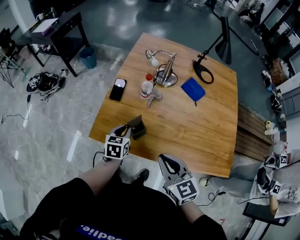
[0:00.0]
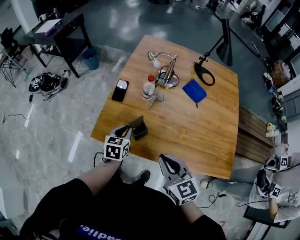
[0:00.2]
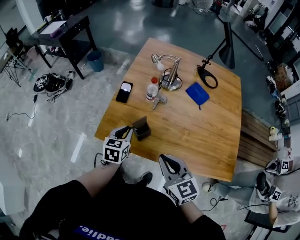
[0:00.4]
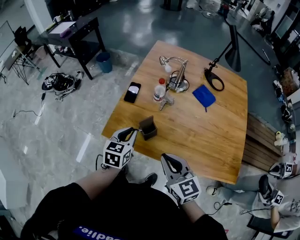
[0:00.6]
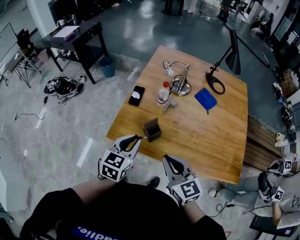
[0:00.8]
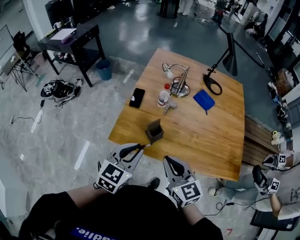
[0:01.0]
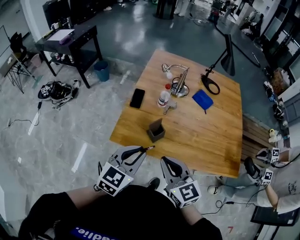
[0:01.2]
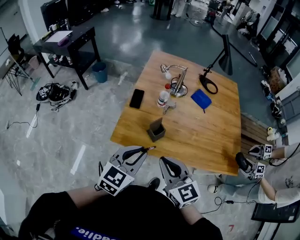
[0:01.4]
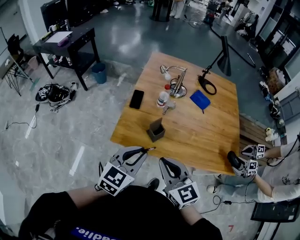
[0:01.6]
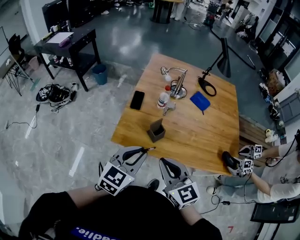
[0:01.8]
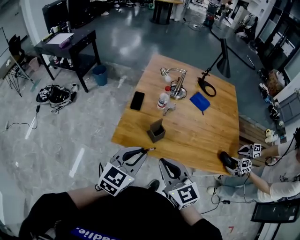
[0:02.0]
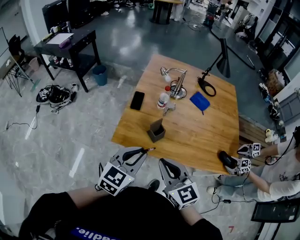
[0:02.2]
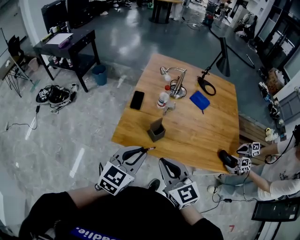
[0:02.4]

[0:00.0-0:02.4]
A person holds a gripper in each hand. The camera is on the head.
0:00.0 to 0:01.2: The left gripper is displaced upward and backward by some 25 cm, and rotates roughly 30 degrees. The right gripper shifts some 10 cm to the left and upward.
0:01.2 to 0:02.4: The grippers make only small movements.

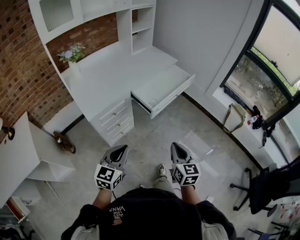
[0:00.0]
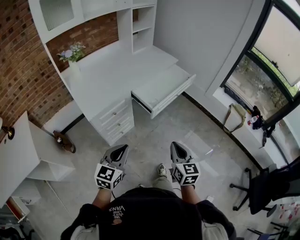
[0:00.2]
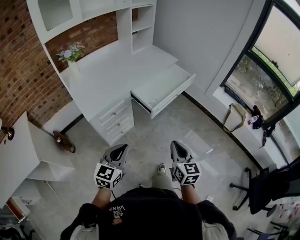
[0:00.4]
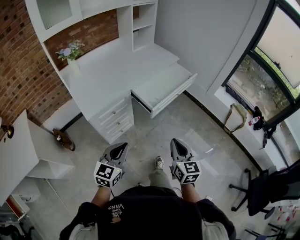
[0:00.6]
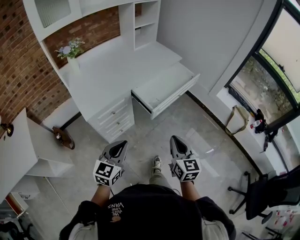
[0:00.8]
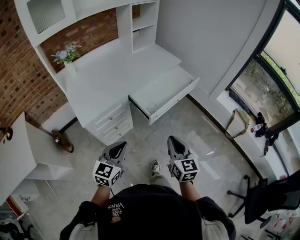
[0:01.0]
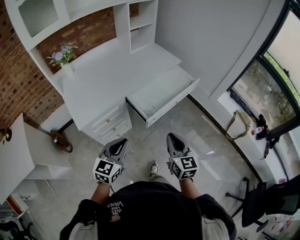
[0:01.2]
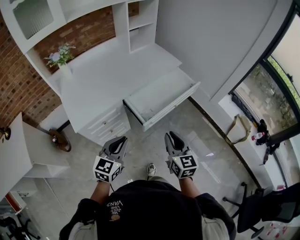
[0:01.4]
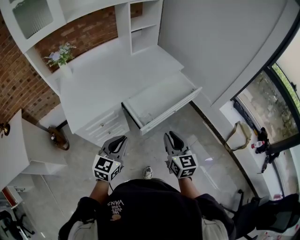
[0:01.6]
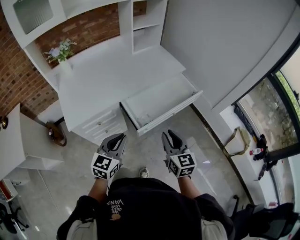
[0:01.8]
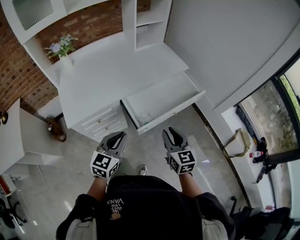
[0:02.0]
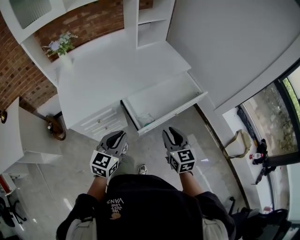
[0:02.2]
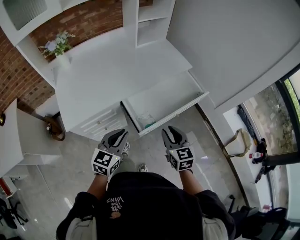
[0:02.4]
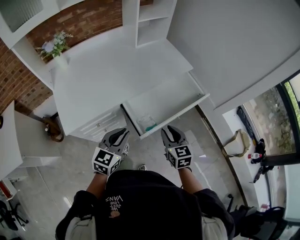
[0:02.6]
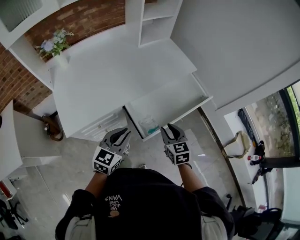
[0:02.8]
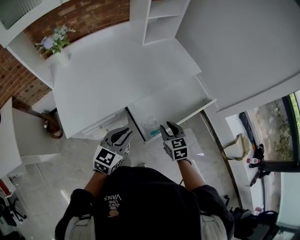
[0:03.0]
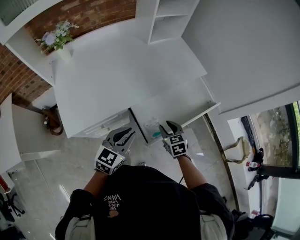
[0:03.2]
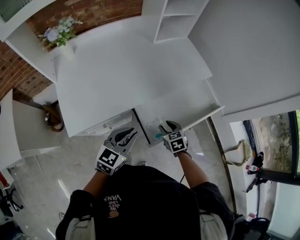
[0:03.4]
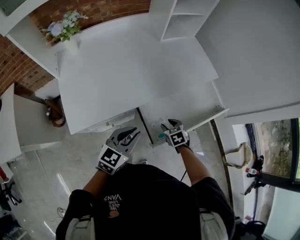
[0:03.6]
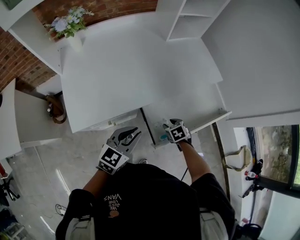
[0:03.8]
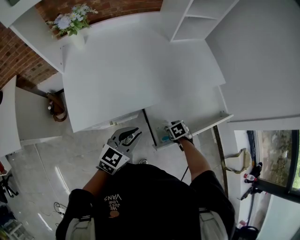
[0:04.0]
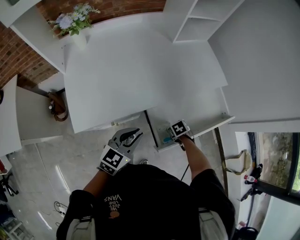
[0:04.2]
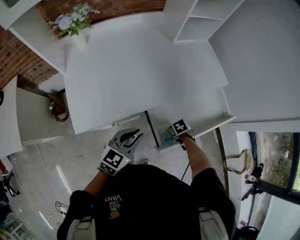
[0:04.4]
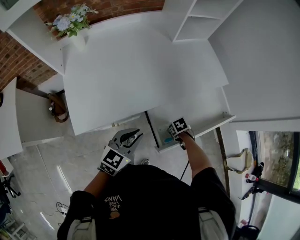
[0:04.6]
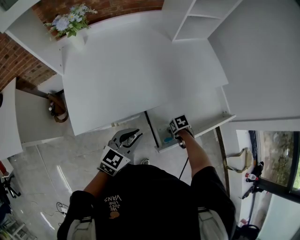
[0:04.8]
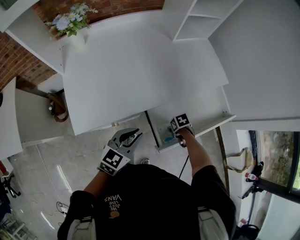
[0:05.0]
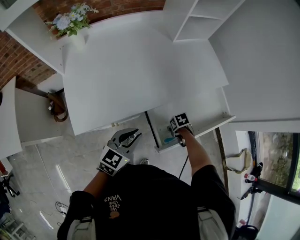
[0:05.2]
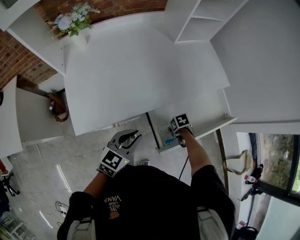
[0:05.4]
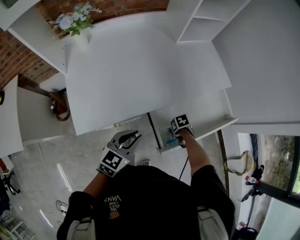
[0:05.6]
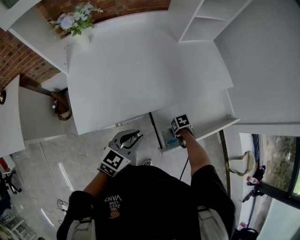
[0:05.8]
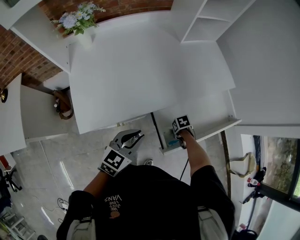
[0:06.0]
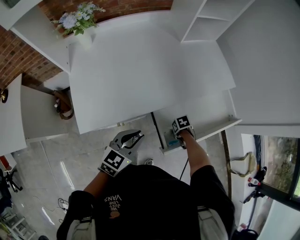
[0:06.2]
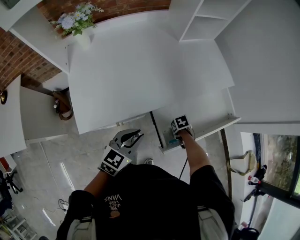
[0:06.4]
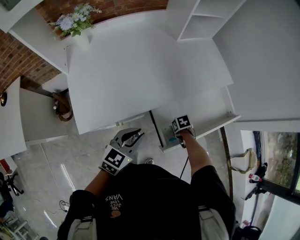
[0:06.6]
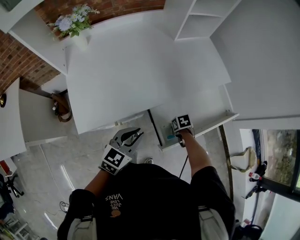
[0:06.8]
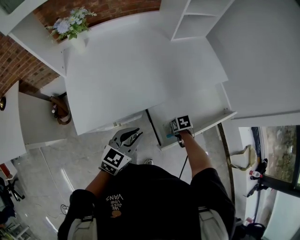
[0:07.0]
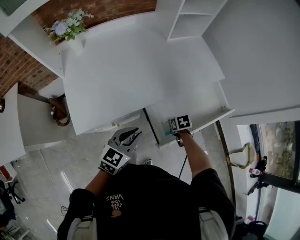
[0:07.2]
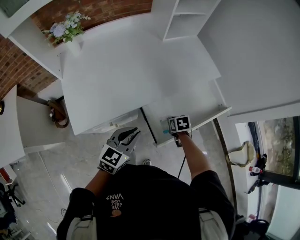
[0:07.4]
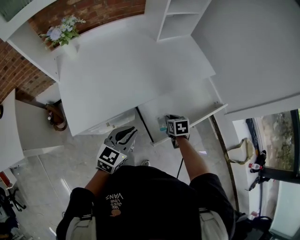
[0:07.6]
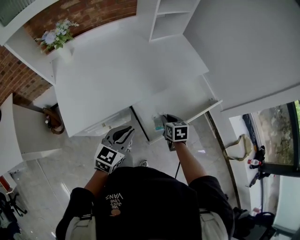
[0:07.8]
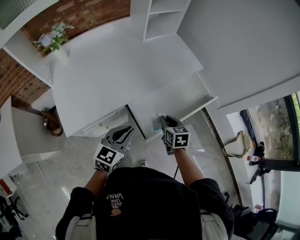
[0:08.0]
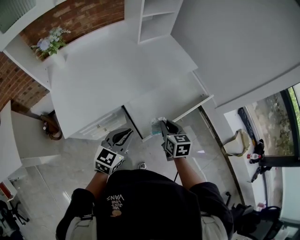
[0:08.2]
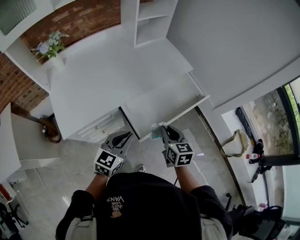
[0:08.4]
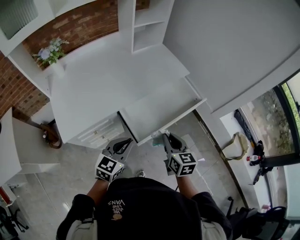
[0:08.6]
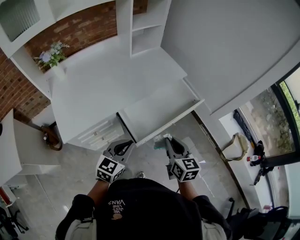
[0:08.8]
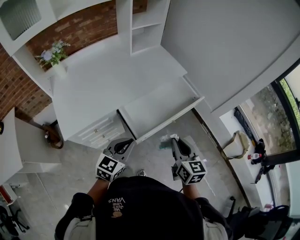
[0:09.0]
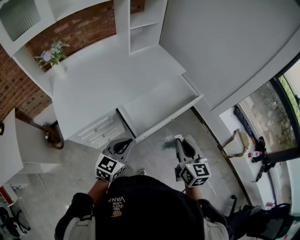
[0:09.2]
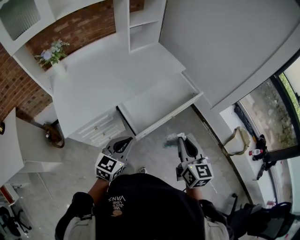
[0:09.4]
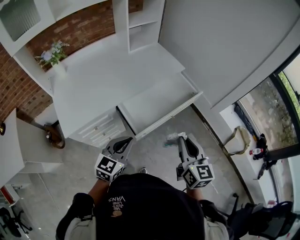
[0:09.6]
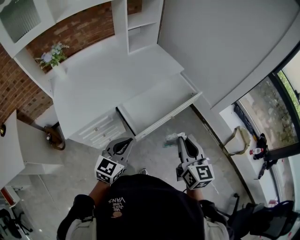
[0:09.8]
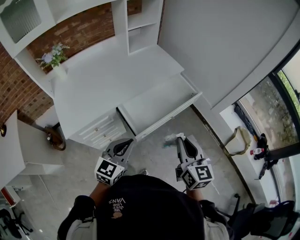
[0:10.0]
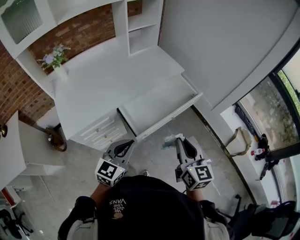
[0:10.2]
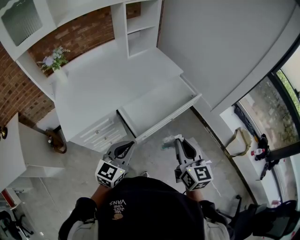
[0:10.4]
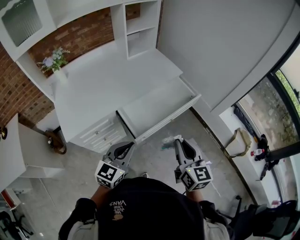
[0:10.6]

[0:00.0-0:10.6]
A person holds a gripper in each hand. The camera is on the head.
0:00.0 to 0:01.6: The grippers both shift forward by some 25 cm.
0:01.6 to 0:03.0: The right gripper goes about 25 cm forward and downward, and rotates some 30 degrees; the left gripper travels forward by approximately 15 cm.
0:03.0 to 0:04.6: The right gripper shifts some 20 cm downward, and tips its fingers downward by approximately 40 degrees; the left gripper shifts by roughly 10 cm.
0:04.6 to 0:06.0: There are only small adjustments of the grippers.
0:06.0 to 0:07.6: The right gripper goes about 15 cm upward, rotates roughly 40 degrees, and closes up. Meanwhile the left gripper changes place by roughly 5 cm.
0:07.6 to 0:09.0: The right gripper heads upward, backward and to the right, covering approximately 35 cm, and tilts its fingers approximately 40 degrees upward. Meanwhile the left gripper shifts about 15 cm to the right and backward.
0:09.0 to 0:10.6: The right gripper is displaced upward by approximately 5 cm. Meanwhile the left gripper shifts by about 5 cm.

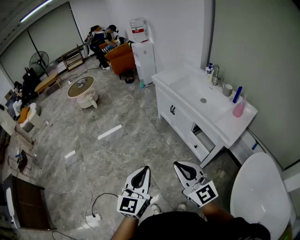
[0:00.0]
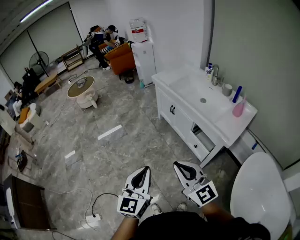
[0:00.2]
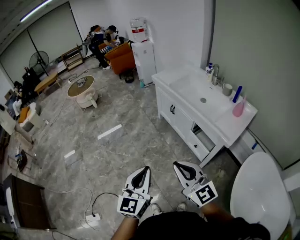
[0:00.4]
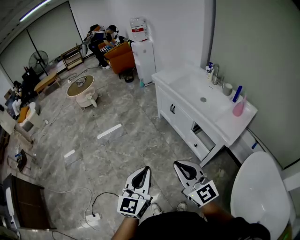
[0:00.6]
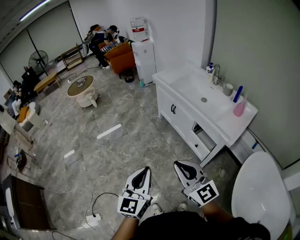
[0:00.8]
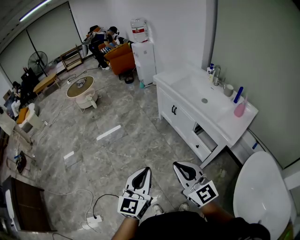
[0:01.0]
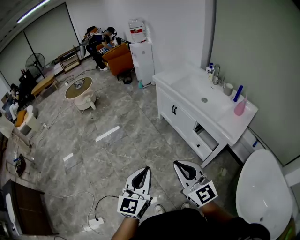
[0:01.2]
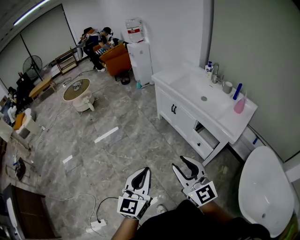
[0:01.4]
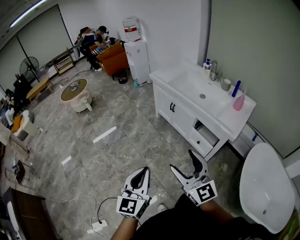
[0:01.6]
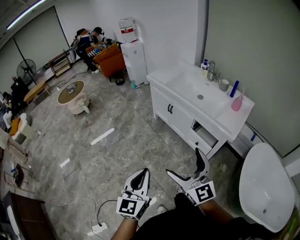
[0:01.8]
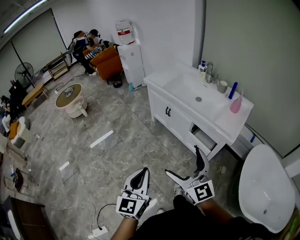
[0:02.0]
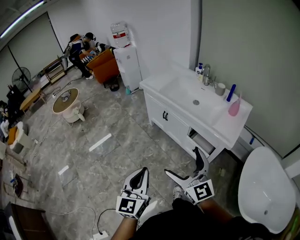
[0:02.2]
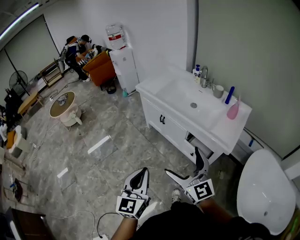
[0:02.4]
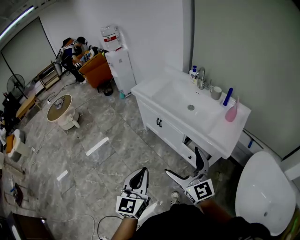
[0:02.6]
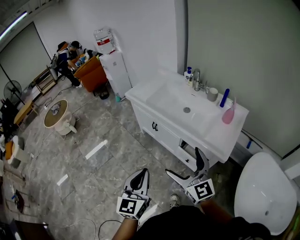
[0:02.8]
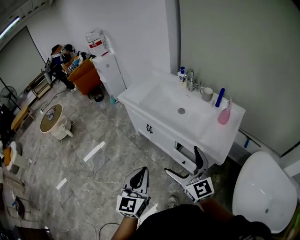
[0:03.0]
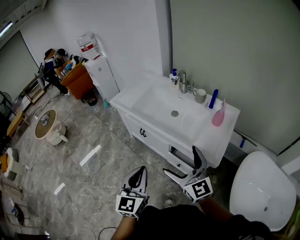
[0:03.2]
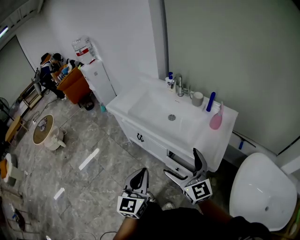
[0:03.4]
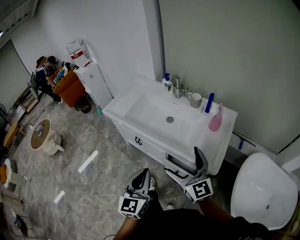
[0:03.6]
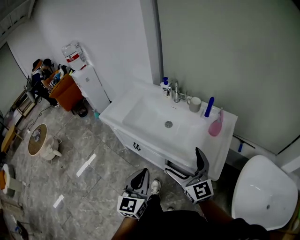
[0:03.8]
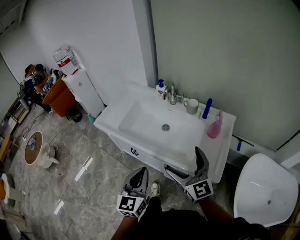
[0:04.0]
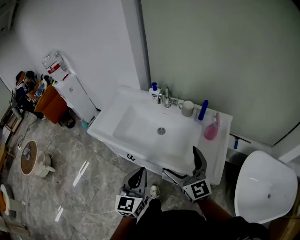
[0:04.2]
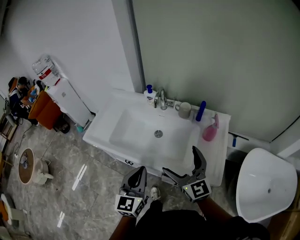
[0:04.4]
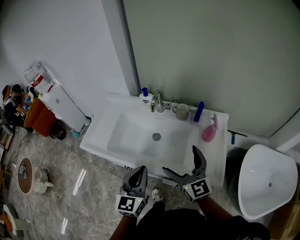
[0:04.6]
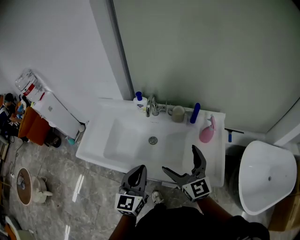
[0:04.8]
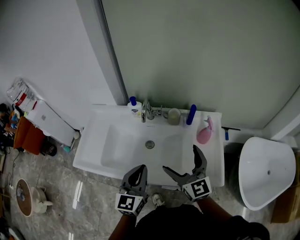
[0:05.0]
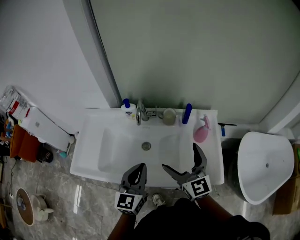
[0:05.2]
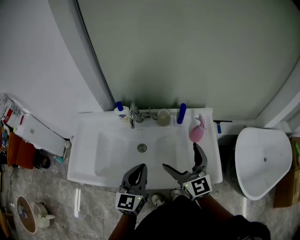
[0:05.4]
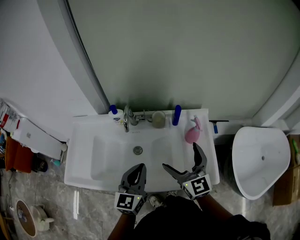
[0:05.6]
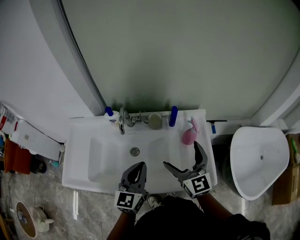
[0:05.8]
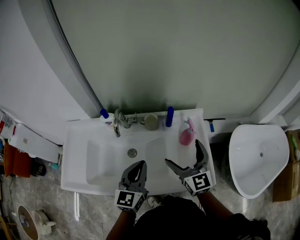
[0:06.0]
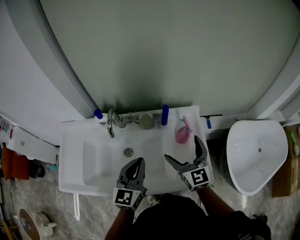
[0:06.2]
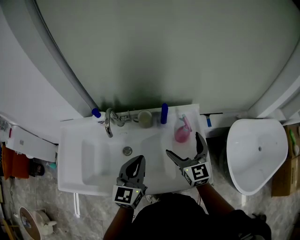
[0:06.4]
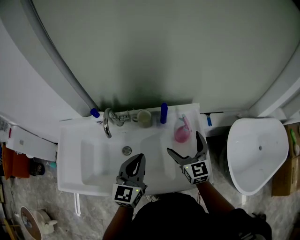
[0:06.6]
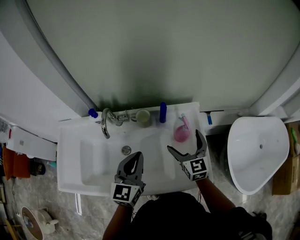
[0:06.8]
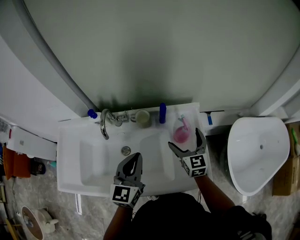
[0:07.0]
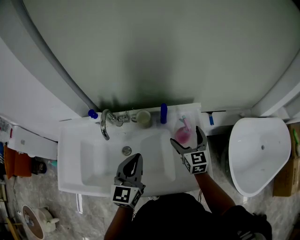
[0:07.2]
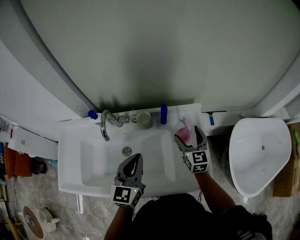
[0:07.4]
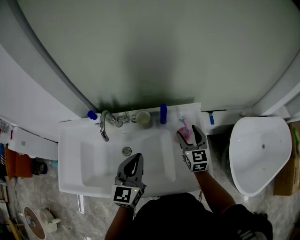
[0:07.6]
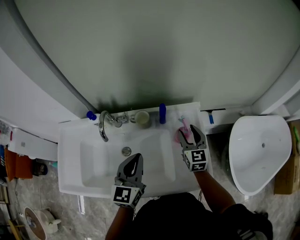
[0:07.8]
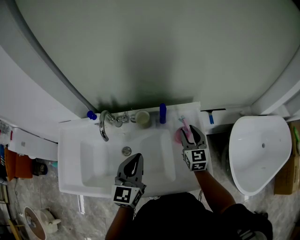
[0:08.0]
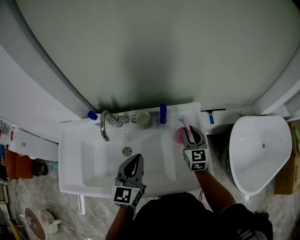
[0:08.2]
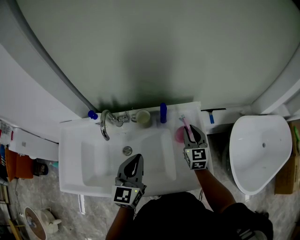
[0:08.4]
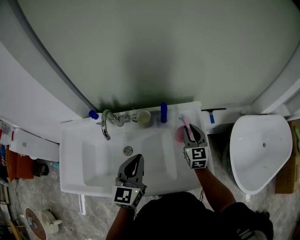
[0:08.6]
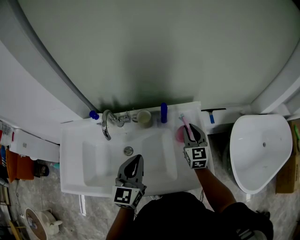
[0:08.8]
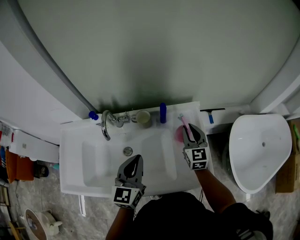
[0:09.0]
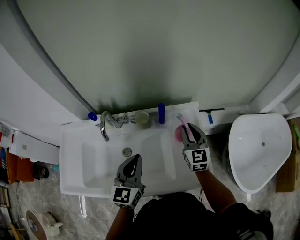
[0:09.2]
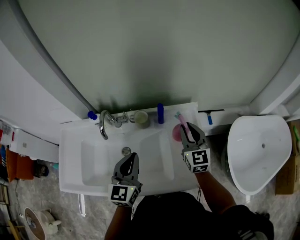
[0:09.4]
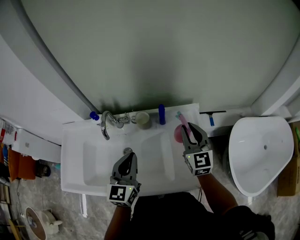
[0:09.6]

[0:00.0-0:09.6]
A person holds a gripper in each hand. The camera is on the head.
0:00.0 to 0:01.6: The left gripper moves to the left, approximately 5 cm, while the right gripper changes place by roughly 5 cm, and opens up.
0:01.6 to 0:03.2: The two grippers go some 35 cm forward and to the right. The right gripper opens.
0:03.2 to 0:04.8: The right gripper changes place by about 30 cm, and changes its angle by approximately 30 degrees, while the left gripper changes place by approximately 35 cm, and rotates about 30 degrees.
0:04.8 to 0:06.4: The right gripper travels to the right and forward by roughly 20 cm, and changes its angle by approximately 30 degrees. Meanwhile the left gripper travels forward and to the right by some 20 cm.
0:06.4 to 0:08.0: The right gripper is displaced forward, downward and to the right by approximately 10 cm, and closes its fingers.
0:08.0 to 0:09.6: The right gripper is displaced upward by approximately 10 cm.

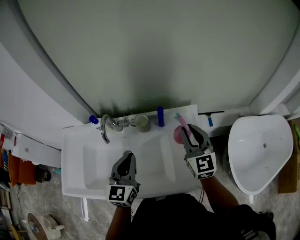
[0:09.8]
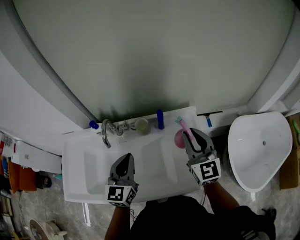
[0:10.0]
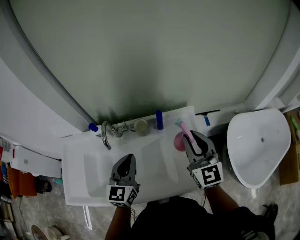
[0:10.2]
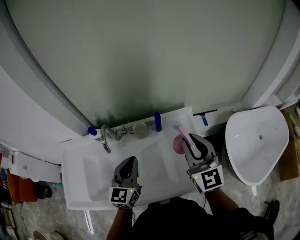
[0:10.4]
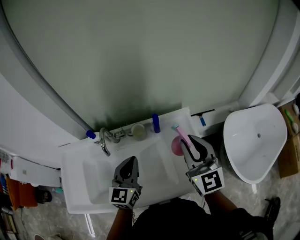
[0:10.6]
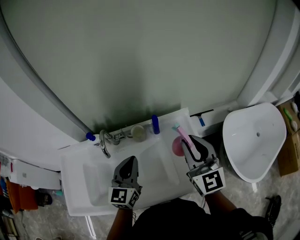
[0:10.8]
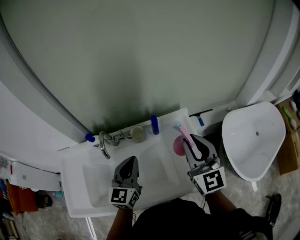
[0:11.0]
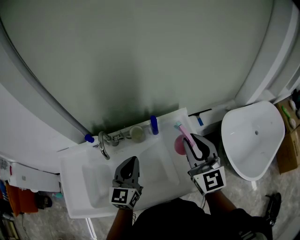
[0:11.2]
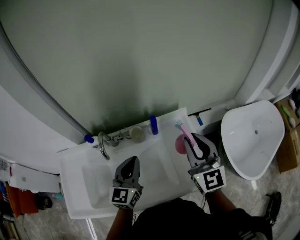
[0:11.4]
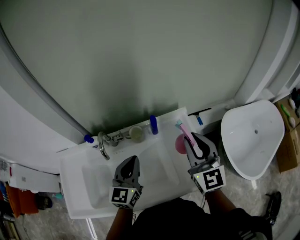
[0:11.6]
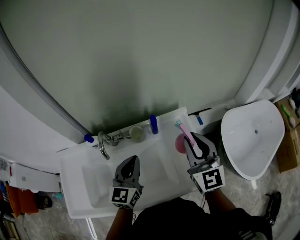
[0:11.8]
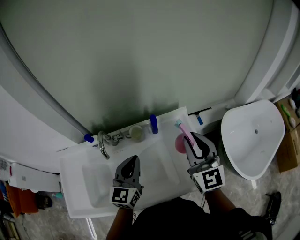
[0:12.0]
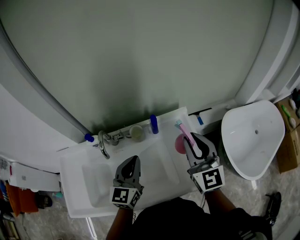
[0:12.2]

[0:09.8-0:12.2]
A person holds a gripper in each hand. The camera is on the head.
0:09.8 to 0:11.0: The right gripper heads upward and backward, covering some 10 cm.
0:11.0 to 0:12.2: Both grippers stay put.
